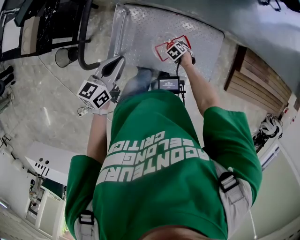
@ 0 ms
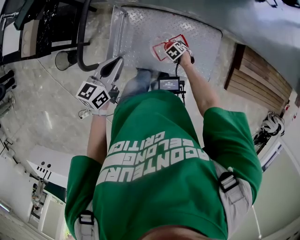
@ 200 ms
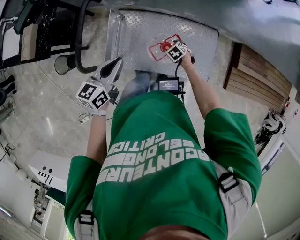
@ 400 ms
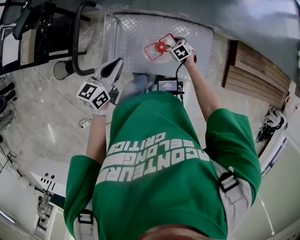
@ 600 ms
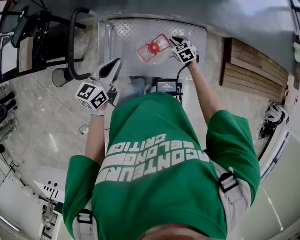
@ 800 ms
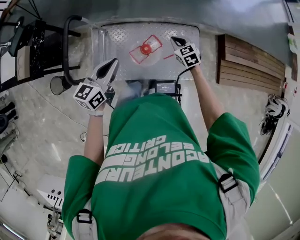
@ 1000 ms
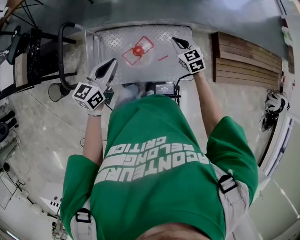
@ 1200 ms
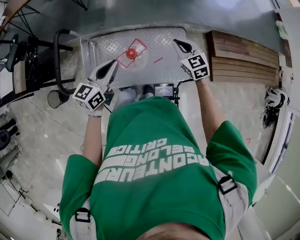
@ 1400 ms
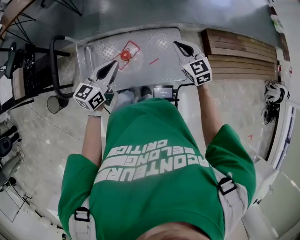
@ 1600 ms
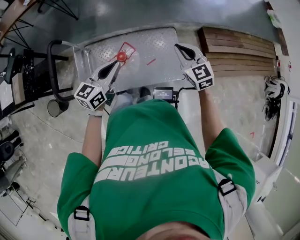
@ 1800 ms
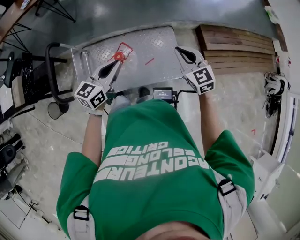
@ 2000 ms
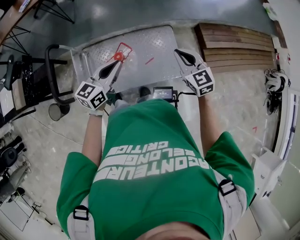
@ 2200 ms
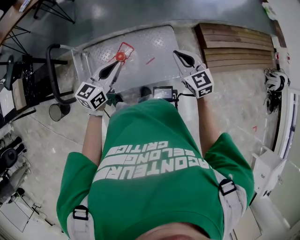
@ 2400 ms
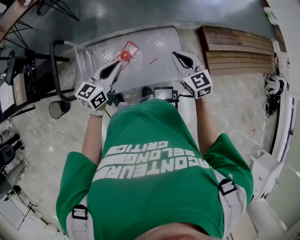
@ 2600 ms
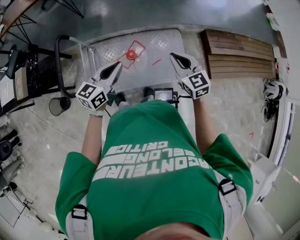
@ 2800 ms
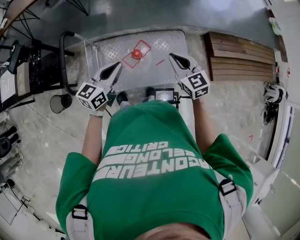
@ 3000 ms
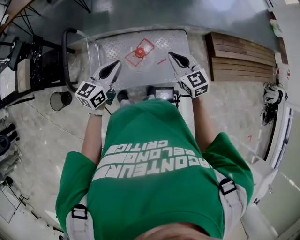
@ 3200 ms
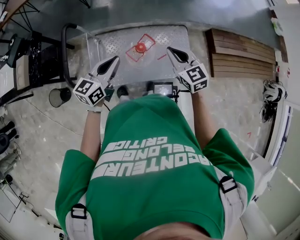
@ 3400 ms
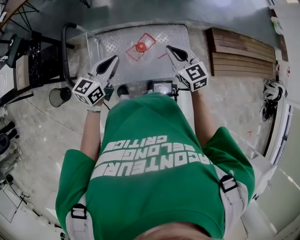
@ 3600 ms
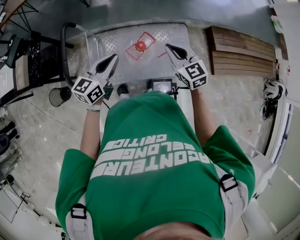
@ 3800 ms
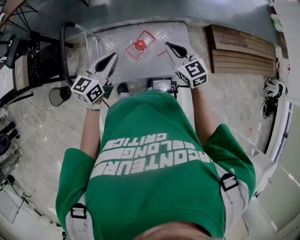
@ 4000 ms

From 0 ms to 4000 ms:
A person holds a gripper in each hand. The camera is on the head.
From 0 ms to 1400 ms: The right gripper is displaced upward by approximately 35 cm, tilts its fingers about 50 degrees upward, and closes. The left gripper moves roughly 20 cm, and changes its angle by roughly 20 degrees.
From 1400 ms to 2600 ms: The left gripper goes approximately 5 cm to the right. The right gripper travels backward and upward by approximately 10 cm.
From 2600 ms to 4000 ms: The grippers both shift to the left by some 15 cm.

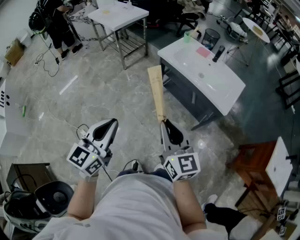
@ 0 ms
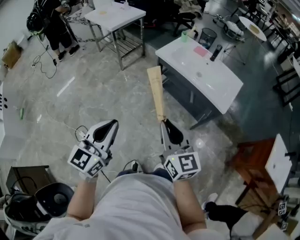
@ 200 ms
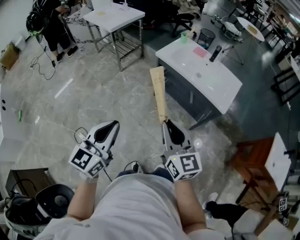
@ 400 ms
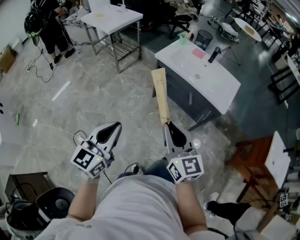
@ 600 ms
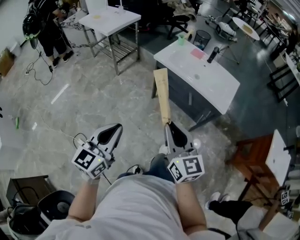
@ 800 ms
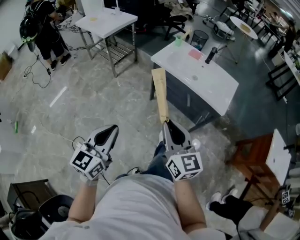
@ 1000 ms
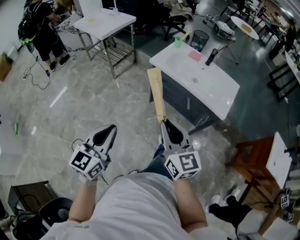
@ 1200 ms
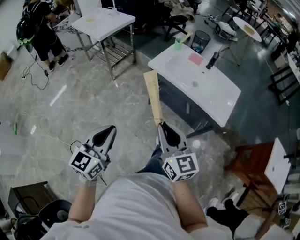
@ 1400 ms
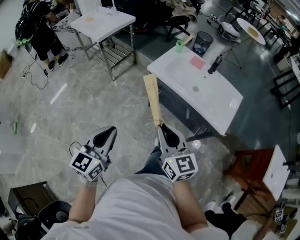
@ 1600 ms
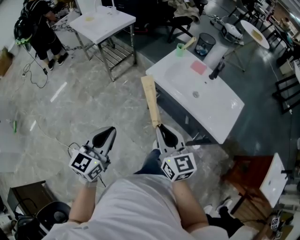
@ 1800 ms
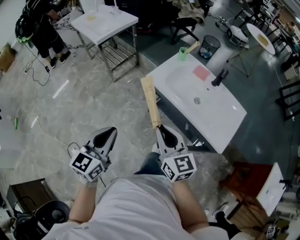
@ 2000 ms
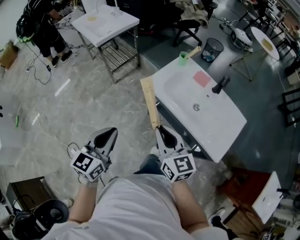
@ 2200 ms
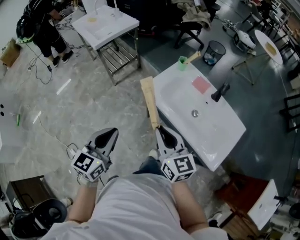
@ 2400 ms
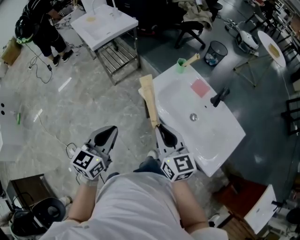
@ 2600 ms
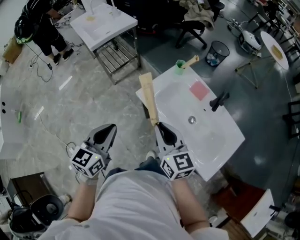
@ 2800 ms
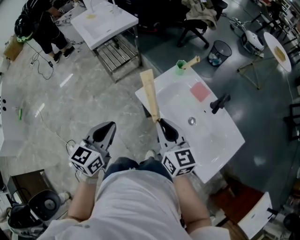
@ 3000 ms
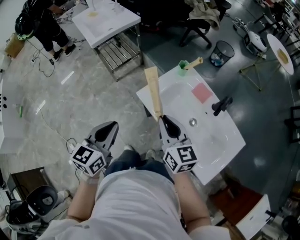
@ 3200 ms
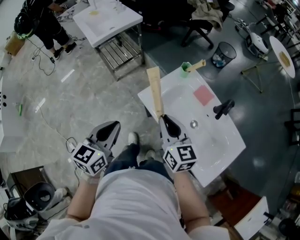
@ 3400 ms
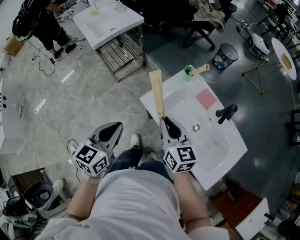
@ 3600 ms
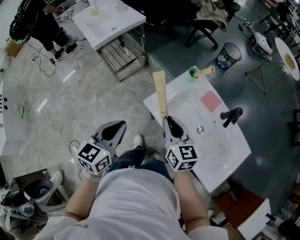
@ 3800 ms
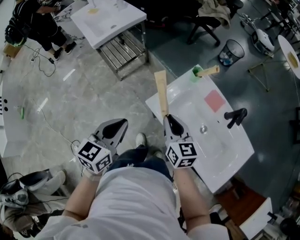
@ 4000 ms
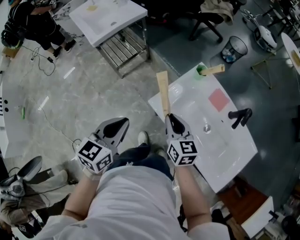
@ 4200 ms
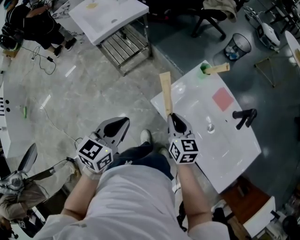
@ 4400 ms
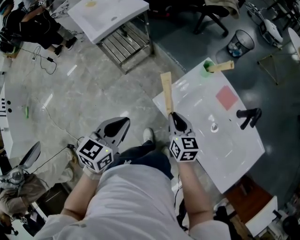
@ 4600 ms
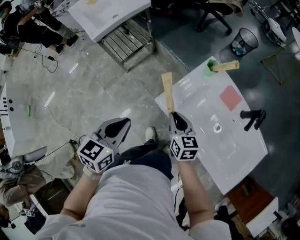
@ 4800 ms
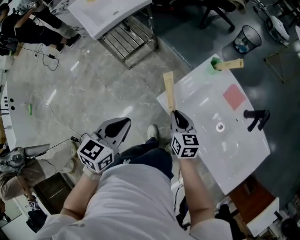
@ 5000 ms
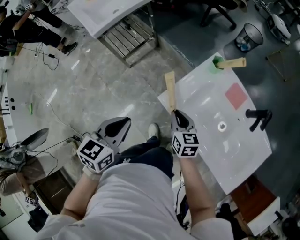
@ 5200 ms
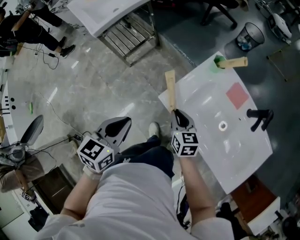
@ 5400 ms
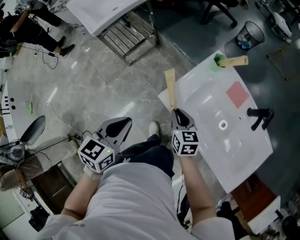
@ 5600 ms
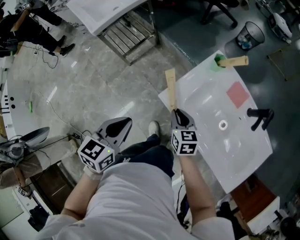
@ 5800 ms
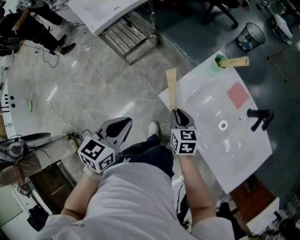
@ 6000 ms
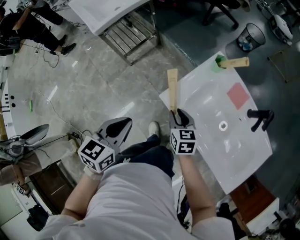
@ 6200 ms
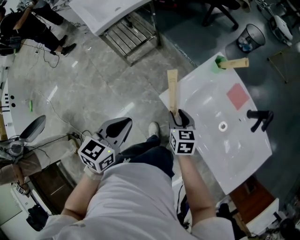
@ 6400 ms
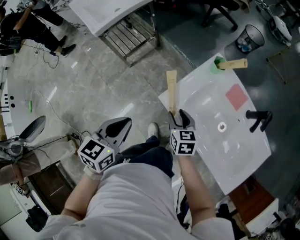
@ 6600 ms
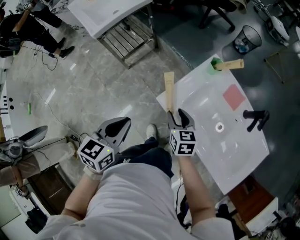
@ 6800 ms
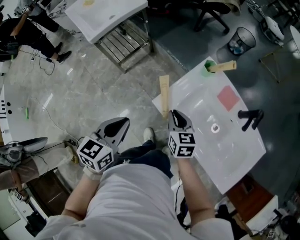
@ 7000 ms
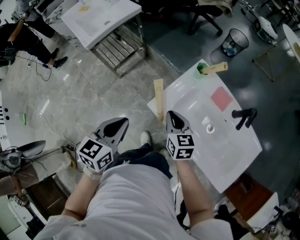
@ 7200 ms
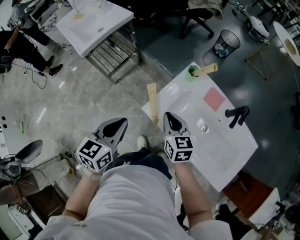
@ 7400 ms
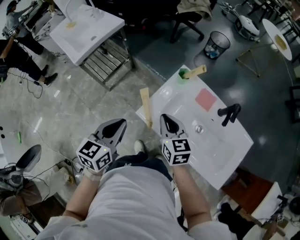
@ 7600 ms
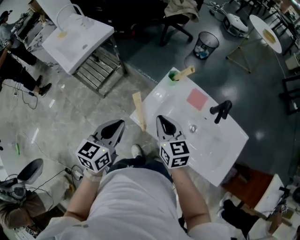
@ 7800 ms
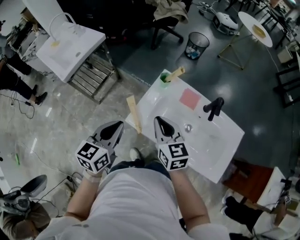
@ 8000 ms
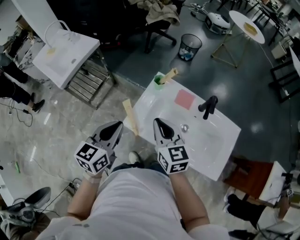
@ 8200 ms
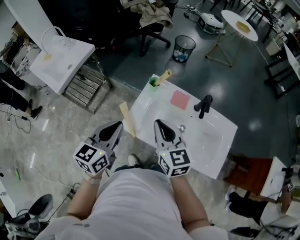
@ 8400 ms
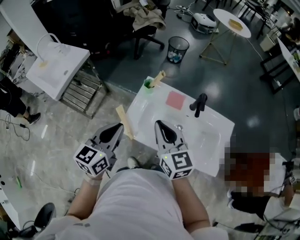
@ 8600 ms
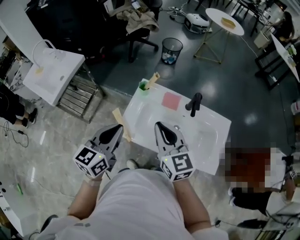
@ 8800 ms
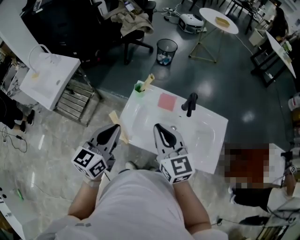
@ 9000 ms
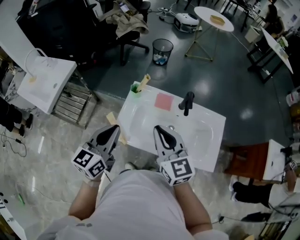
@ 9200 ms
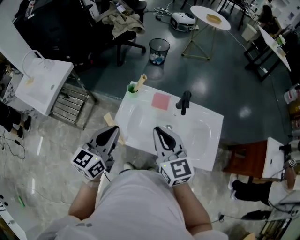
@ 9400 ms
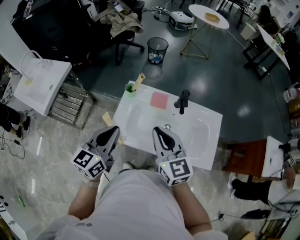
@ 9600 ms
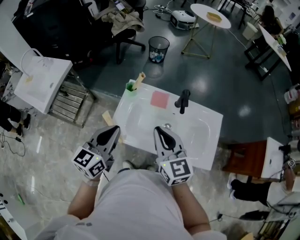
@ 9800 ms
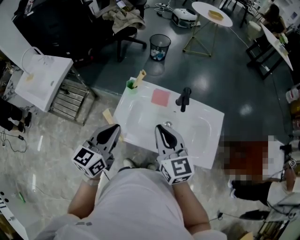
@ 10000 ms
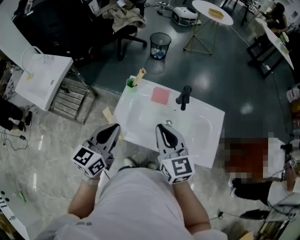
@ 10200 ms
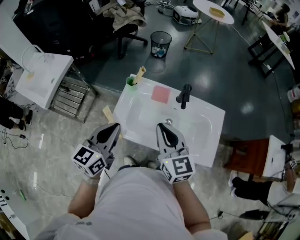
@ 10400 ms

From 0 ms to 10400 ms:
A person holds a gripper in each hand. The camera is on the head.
From 0 ms to 1400 ms: The right gripper is displaced forward by approximately 15 cm, while the left gripper goes roughly 15 cm forward and downward.
From 1400 ms to 3000 ms: The right gripper goes roughly 40 cm forward. The left gripper heads forward and to the right, covering roughly 40 cm.
From 3000 ms to 4400 ms: The left gripper moves forward and downward, about 15 cm. The right gripper travels downward and forward by some 20 cm.
From 4400 ms to 6000 ms: The left gripper goes approximately 5 cm downward. Meanwhile the right gripper travels downward by roughly 10 cm.
From 6000 ms to 7400 ms: The left gripper goes some 5 cm upward. Meanwhile the right gripper travels upward by approximately 10 cm, and opens, then closes once more.
From 7400 ms to 9000 ms: The grippers both shift upward and to the right by about 20 cm. The right gripper rotates roughly 30 degrees. Meanwhile the left gripper swivels roughly 30 degrees.
From 9000 ms to 10400 ms: The right gripper is displaced to the right by approximately 5 cm.

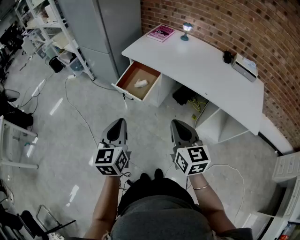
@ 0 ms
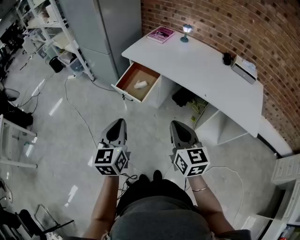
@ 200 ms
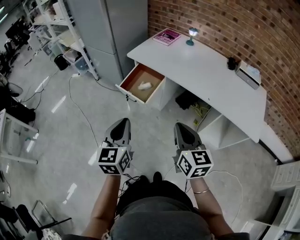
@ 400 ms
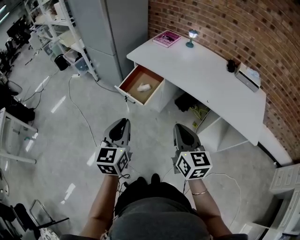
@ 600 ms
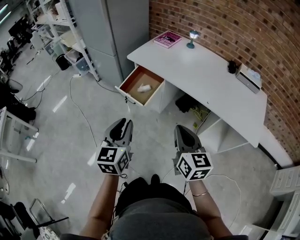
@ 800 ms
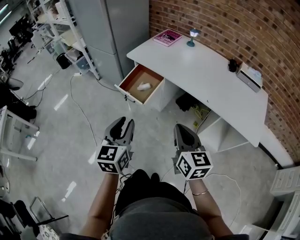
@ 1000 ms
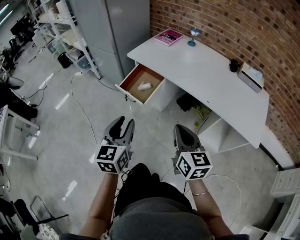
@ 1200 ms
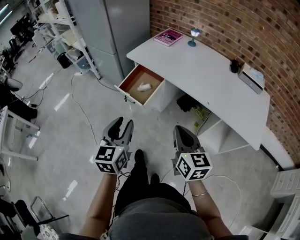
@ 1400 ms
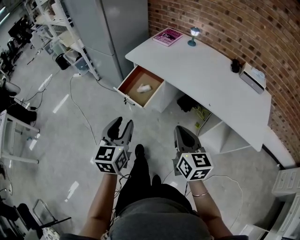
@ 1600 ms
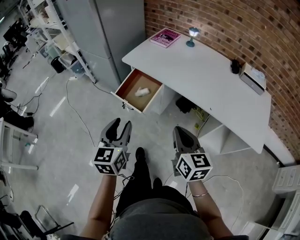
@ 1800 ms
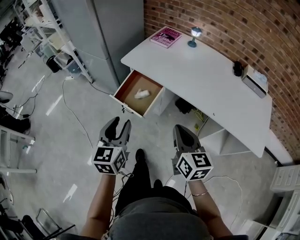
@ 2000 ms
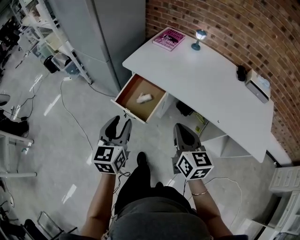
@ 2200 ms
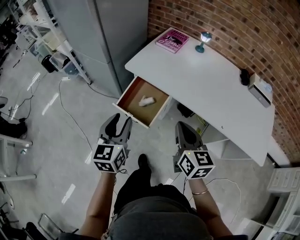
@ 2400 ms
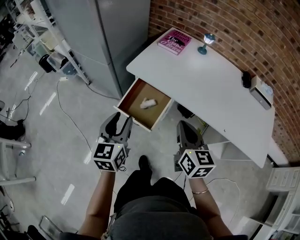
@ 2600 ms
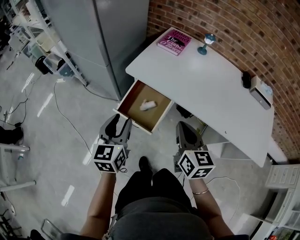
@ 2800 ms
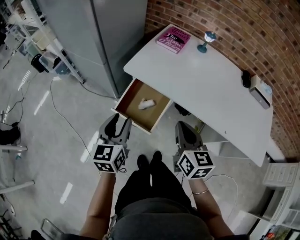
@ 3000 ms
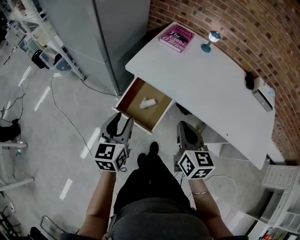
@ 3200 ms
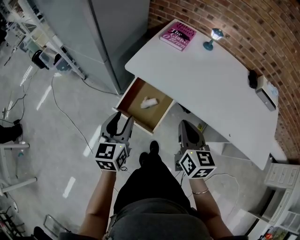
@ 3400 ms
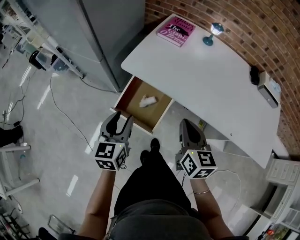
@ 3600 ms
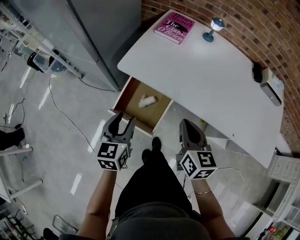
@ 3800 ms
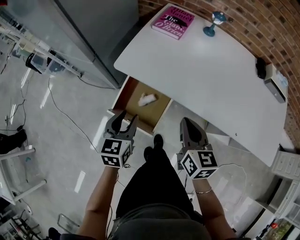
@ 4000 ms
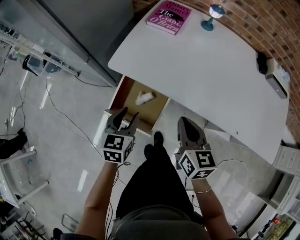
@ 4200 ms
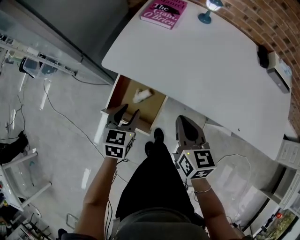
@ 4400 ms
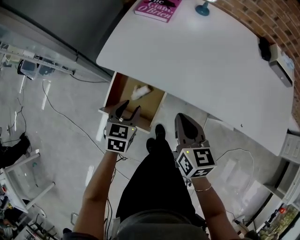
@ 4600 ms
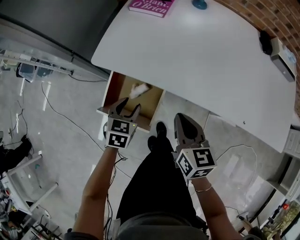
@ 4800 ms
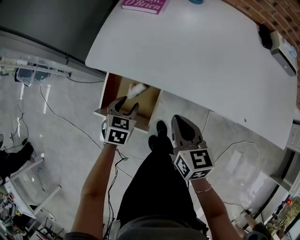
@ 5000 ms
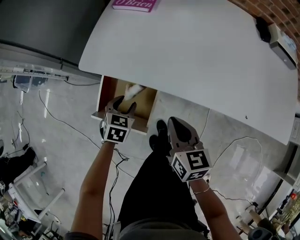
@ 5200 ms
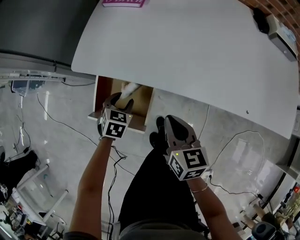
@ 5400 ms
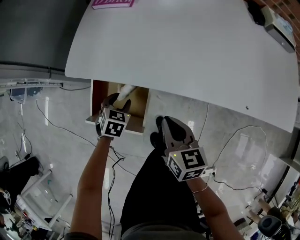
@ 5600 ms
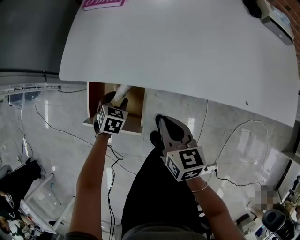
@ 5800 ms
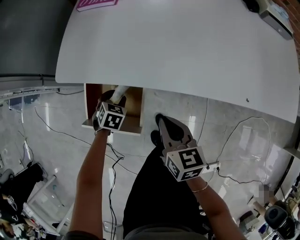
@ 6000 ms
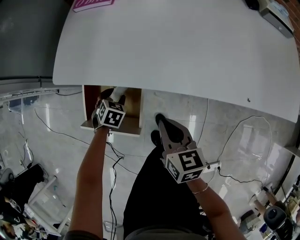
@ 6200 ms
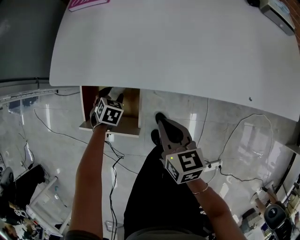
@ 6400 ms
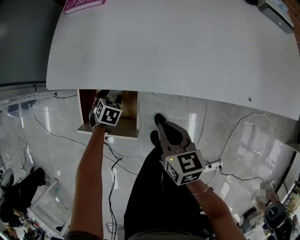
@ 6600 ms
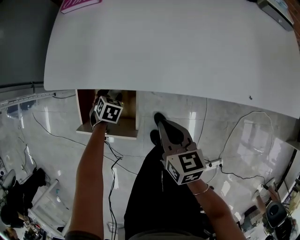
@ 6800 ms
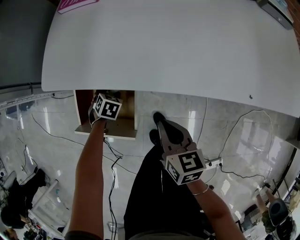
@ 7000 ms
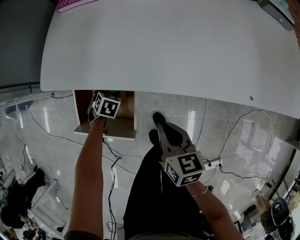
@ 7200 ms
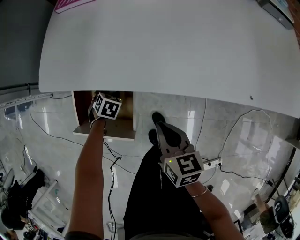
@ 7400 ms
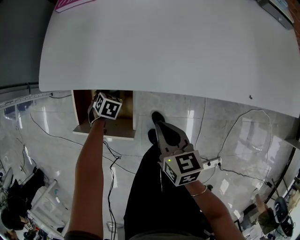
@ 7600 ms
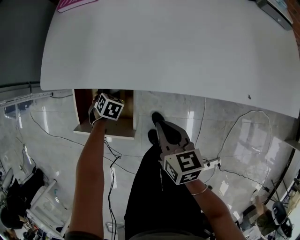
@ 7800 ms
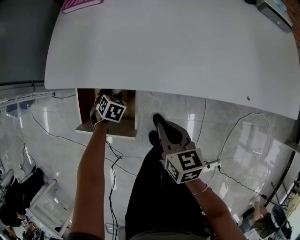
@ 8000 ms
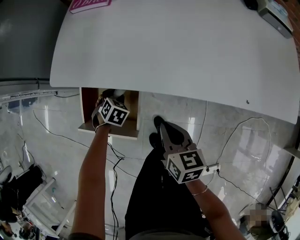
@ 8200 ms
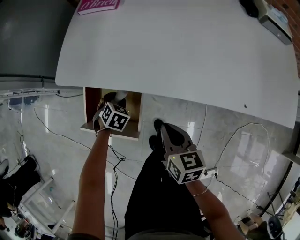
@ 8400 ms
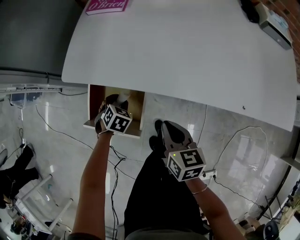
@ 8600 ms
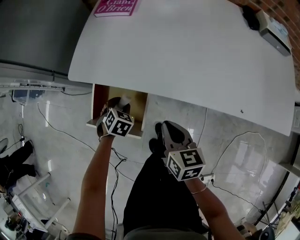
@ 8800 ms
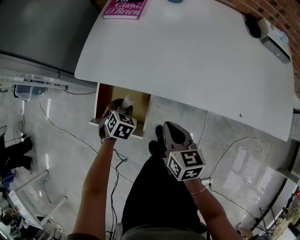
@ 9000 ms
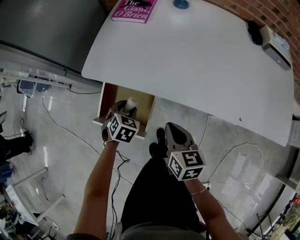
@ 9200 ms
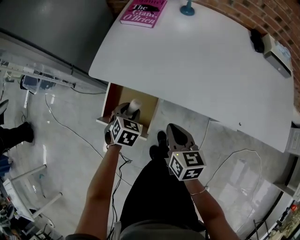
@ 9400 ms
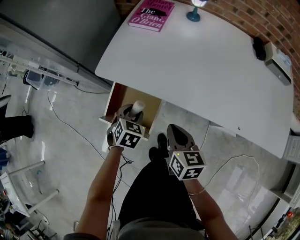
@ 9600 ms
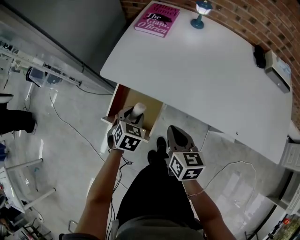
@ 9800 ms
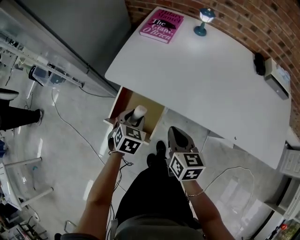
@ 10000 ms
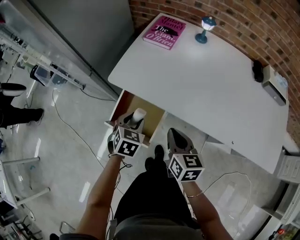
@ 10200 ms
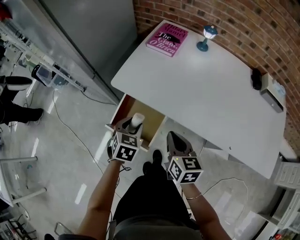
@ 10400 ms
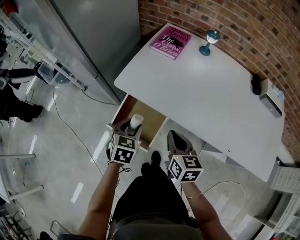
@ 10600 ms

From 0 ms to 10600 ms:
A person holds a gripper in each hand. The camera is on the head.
From 0 ms to 1600 ms: The right gripper moves roughly 5 cm. Meanwhile the left gripper changes place by about 5 cm, and opens its fingers.
From 1600 ms to 3000 ms: Both grippers travel together forward and to the left, about 30 cm.
From 3000 ms to 4600 ms: The right gripper moves downward and forward, about 15 cm, while the left gripper moves downward, forward and to the right, roughly 25 cm, and turns by approximately 30 degrees.
From 4600 ms to 6000 ms: The left gripper goes some 15 cm downward, and rotates about 30 degrees. The right gripper goes some 10 cm downward.
From 6000 ms to 7600 ms: The right gripper ends up roughly 5 cm from where it was. Meanwhile the left gripper moves downward, about 10 cm.
From 7600 ms to 9000 ms: The left gripper travels upward by roughly 15 cm, while the right gripper shifts some 5 cm upward.
From 9000 ms to 10600 ms: The left gripper shifts approximately 15 cm upward, and changes its angle by some 30 degrees. Meanwhile the right gripper moves upward, about 10 cm.
